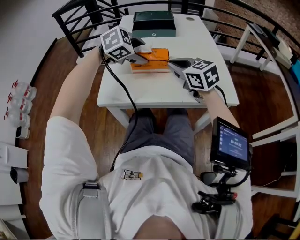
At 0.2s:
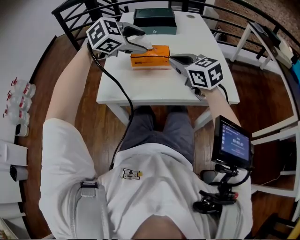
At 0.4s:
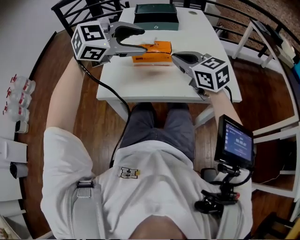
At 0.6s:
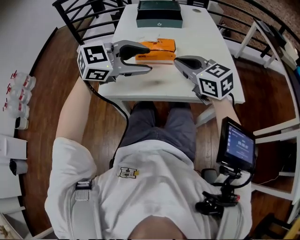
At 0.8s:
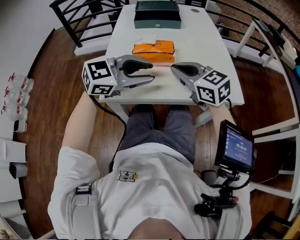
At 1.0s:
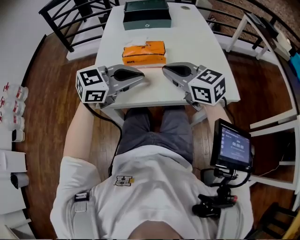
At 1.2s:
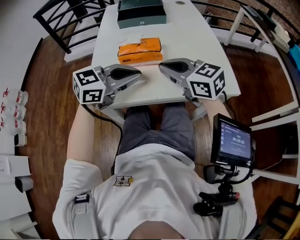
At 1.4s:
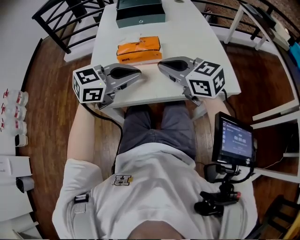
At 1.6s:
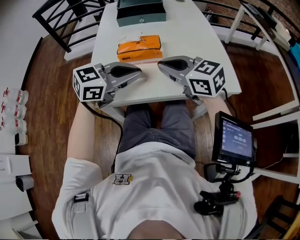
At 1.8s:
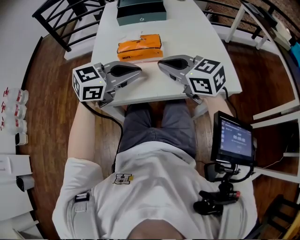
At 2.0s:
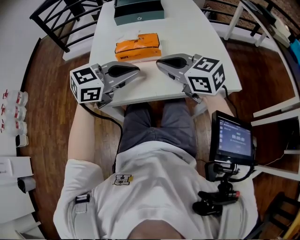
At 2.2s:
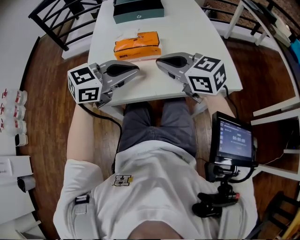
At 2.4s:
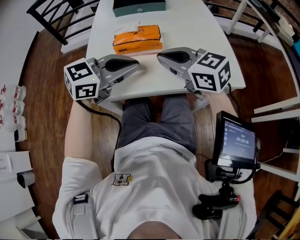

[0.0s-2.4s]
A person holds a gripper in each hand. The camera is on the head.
0.0s to 1.2s: The right gripper moves backward, some 5 cm; the left gripper heads backward, covering approximately 10 cm, points its fingers approximately 40 degrees further upward, and closes its fingers.
1.2s to 2.4s: Neither gripper changes place.

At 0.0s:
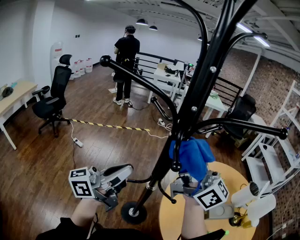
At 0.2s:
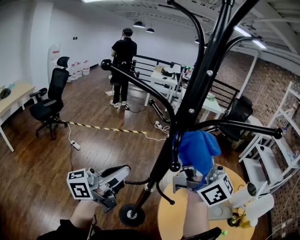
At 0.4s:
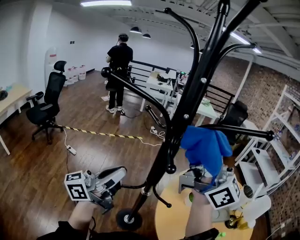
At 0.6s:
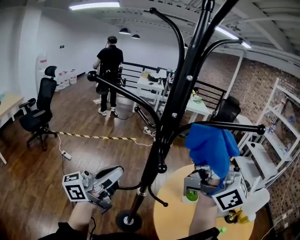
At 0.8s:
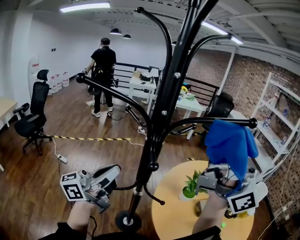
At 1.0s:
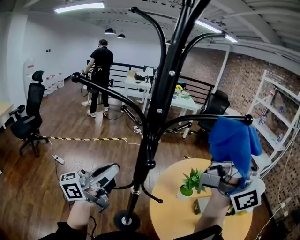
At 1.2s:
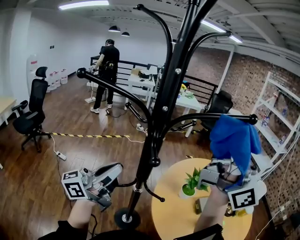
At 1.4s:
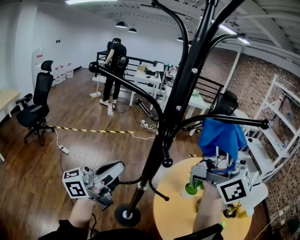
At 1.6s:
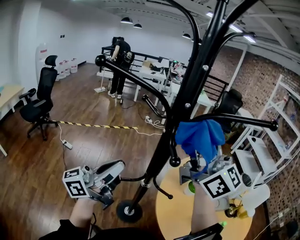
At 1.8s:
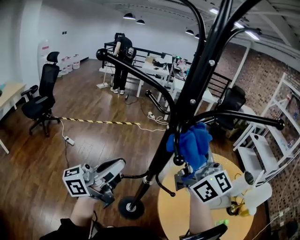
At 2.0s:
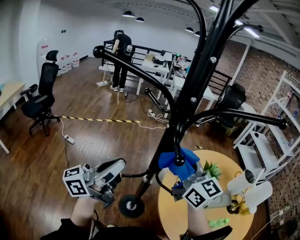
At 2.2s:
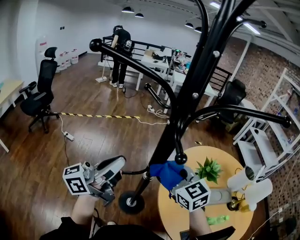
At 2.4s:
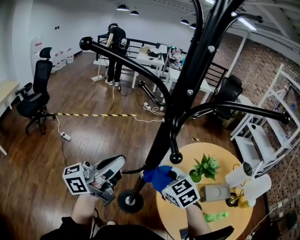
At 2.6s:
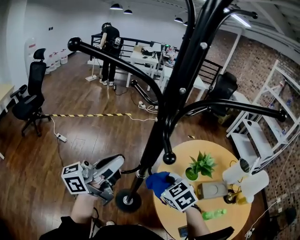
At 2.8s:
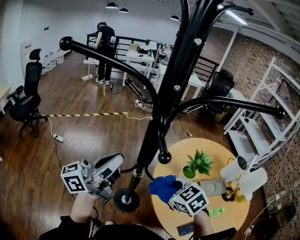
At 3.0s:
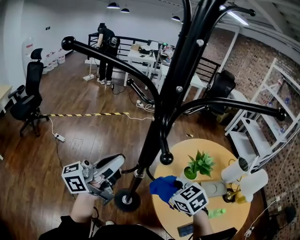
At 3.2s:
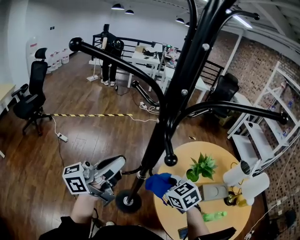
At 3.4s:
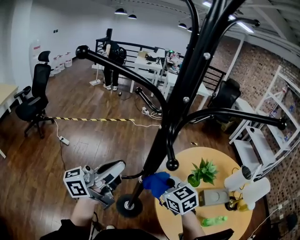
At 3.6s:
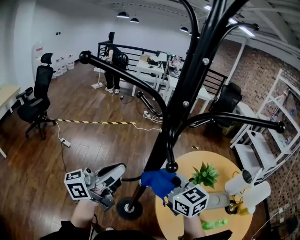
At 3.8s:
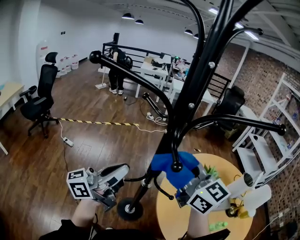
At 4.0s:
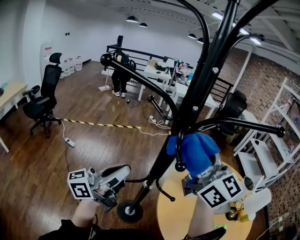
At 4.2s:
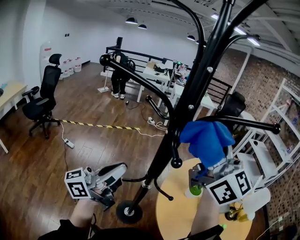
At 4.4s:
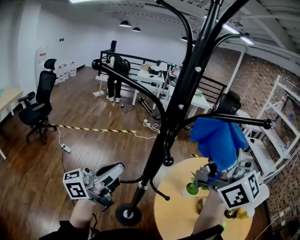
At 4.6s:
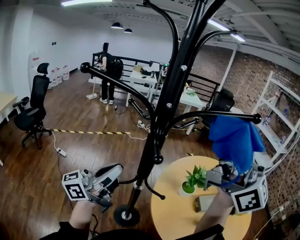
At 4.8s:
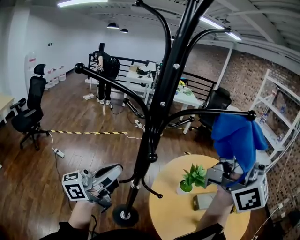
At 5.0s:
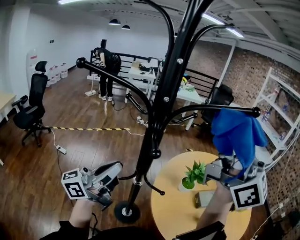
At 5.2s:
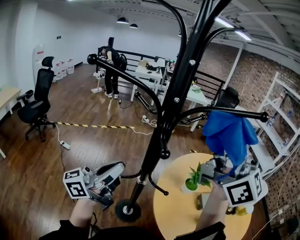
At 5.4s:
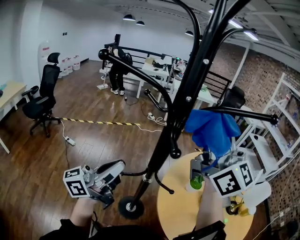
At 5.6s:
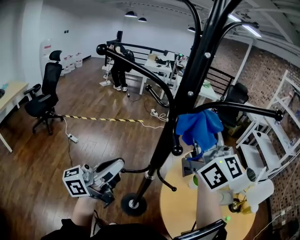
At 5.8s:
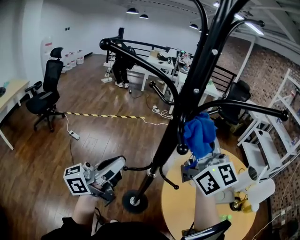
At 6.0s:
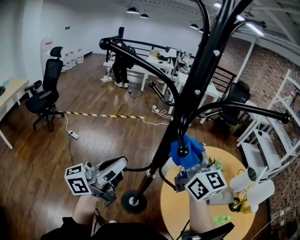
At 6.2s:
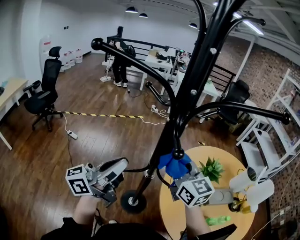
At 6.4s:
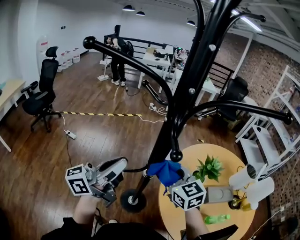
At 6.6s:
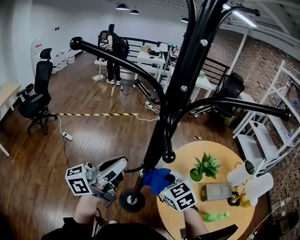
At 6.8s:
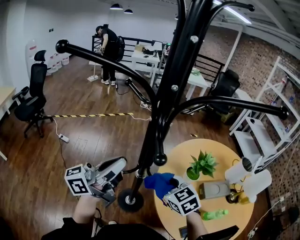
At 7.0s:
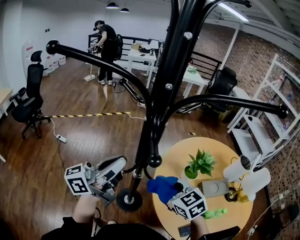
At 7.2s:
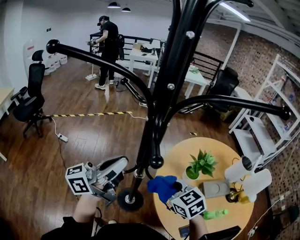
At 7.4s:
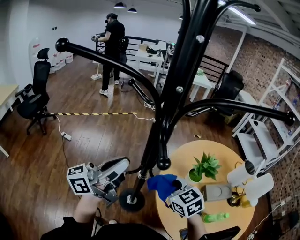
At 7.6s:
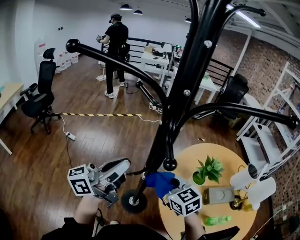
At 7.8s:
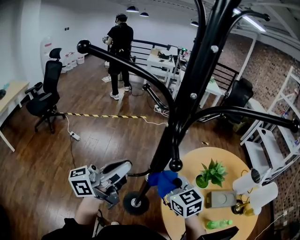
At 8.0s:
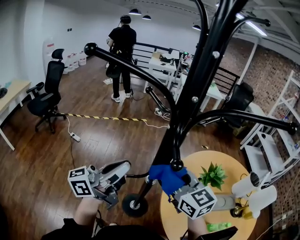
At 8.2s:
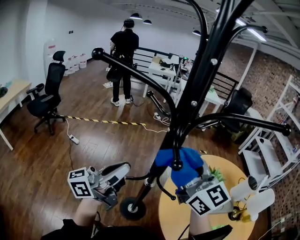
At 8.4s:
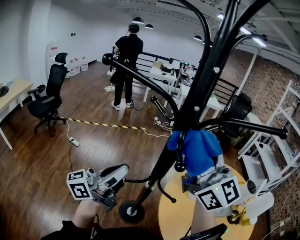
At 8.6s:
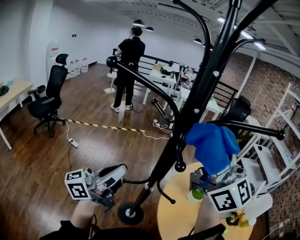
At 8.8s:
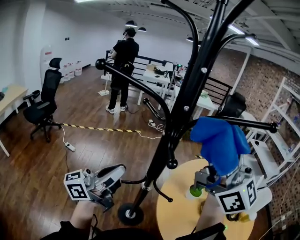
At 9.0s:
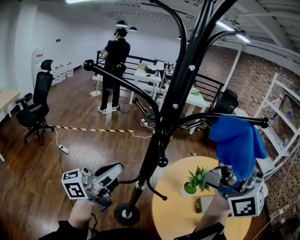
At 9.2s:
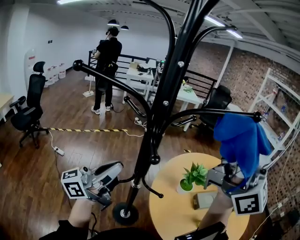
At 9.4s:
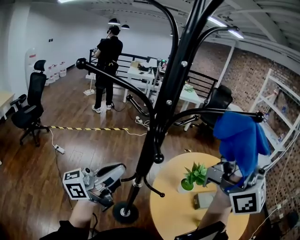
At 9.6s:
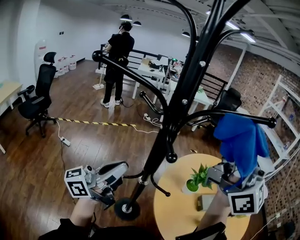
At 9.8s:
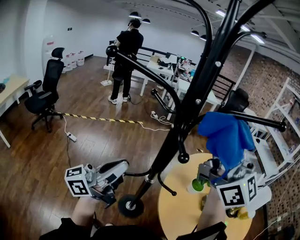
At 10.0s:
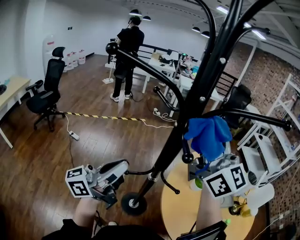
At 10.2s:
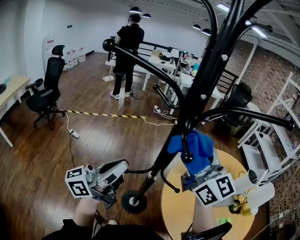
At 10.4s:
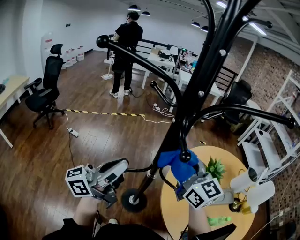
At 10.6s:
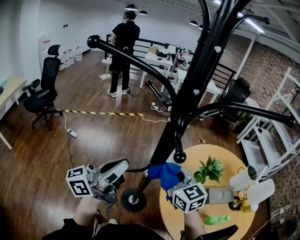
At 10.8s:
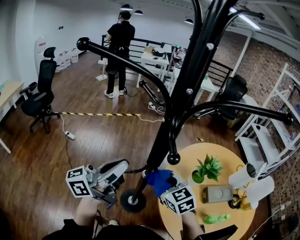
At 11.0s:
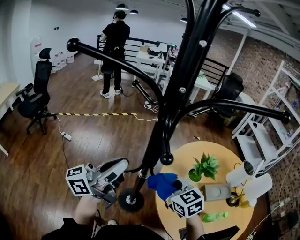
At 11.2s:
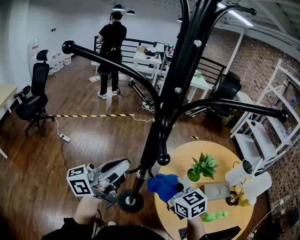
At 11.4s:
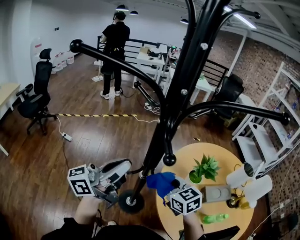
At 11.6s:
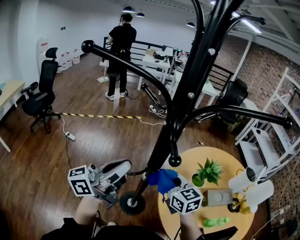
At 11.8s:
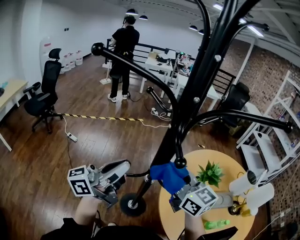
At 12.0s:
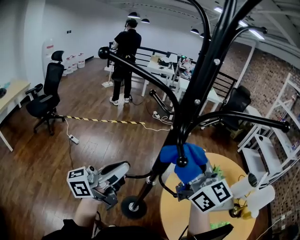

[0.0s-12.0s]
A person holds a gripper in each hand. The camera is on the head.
0.0s to 1.6s: The right gripper shifts roughly 5 cm upward.
1.6s to 3.0s: The right gripper moves downward, roughly 35 cm, and points its fingers roughly 70 degrees further downward.
3.0s to 4.4s: The right gripper moves upward, about 40 cm, and angles its fingers upward, by roughly 80 degrees.
4.4s to 6.0s: The right gripper shifts about 20 cm downward, and turns by some 20 degrees.
6.0s to 7.6s: The right gripper is displaced downward by some 20 cm, and tips its fingers downward by about 40 degrees. Meanwhile the left gripper changes place by about 5 cm.
7.6s to 9.0s: The right gripper shifts roughly 40 cm upward, and tips its fingers upward by roughly 70 degrees.
9.0s to 10.4s: The right gripper is displaced downward and to the left by about 30 cm, and tips its fingers downward by approximately 40 degrees.
10.4s to 12.0s: The right gripper goes downward and returns, approximately 15 cm each way.

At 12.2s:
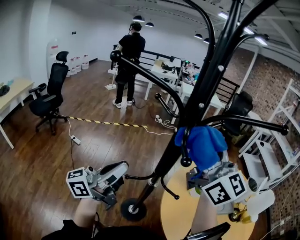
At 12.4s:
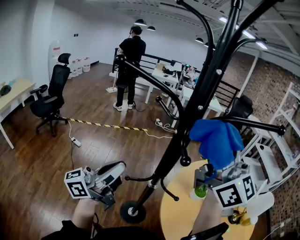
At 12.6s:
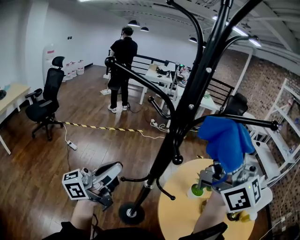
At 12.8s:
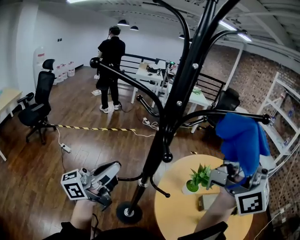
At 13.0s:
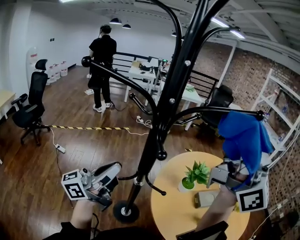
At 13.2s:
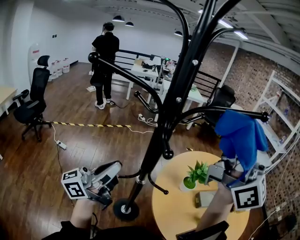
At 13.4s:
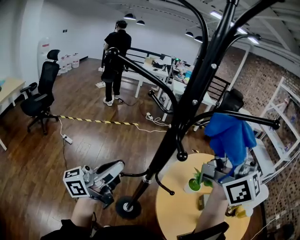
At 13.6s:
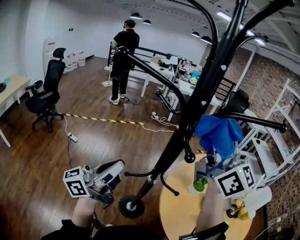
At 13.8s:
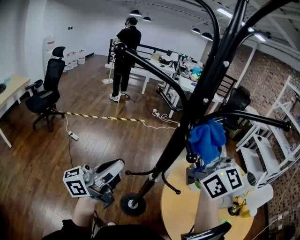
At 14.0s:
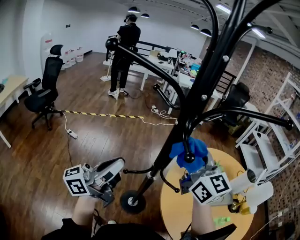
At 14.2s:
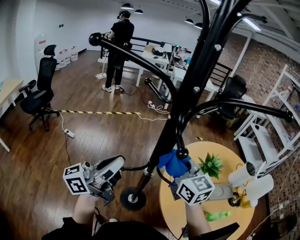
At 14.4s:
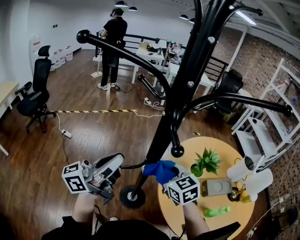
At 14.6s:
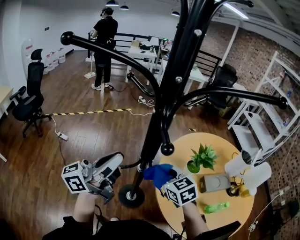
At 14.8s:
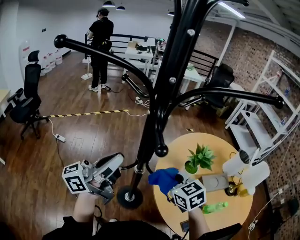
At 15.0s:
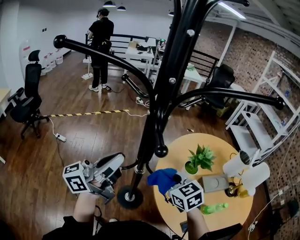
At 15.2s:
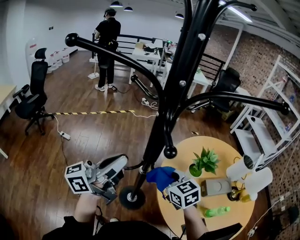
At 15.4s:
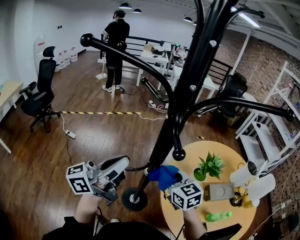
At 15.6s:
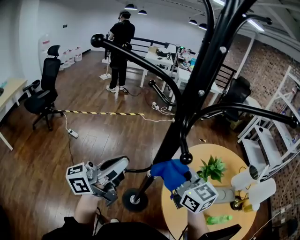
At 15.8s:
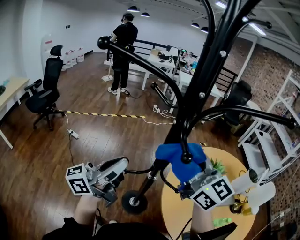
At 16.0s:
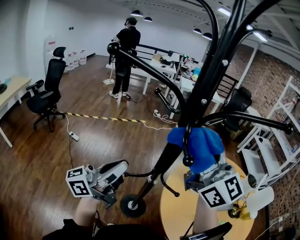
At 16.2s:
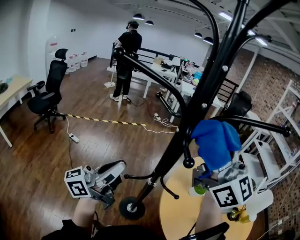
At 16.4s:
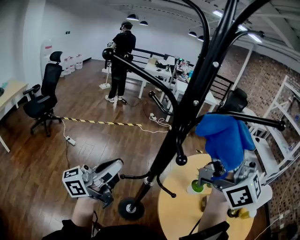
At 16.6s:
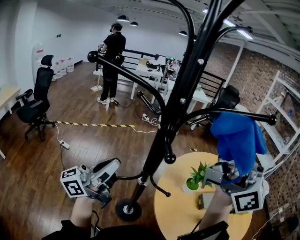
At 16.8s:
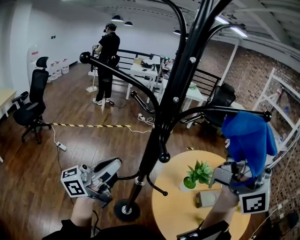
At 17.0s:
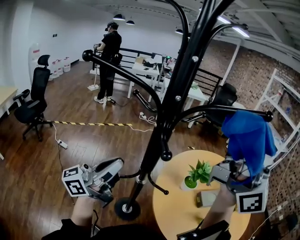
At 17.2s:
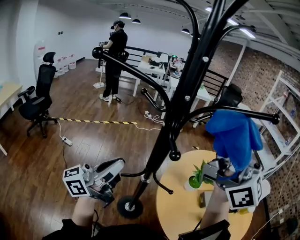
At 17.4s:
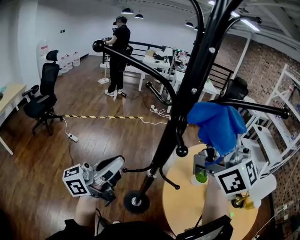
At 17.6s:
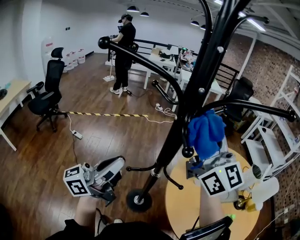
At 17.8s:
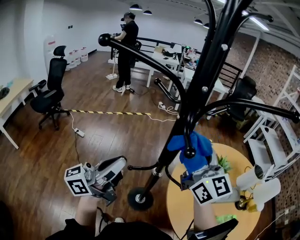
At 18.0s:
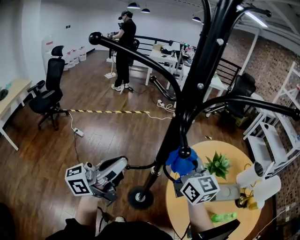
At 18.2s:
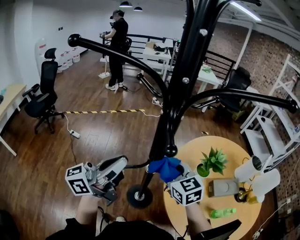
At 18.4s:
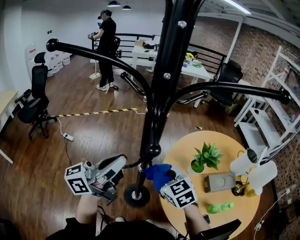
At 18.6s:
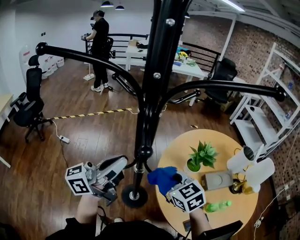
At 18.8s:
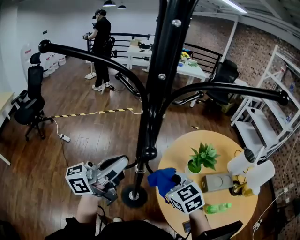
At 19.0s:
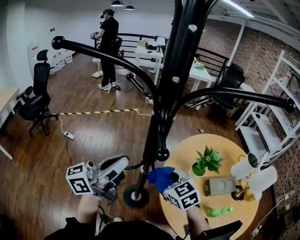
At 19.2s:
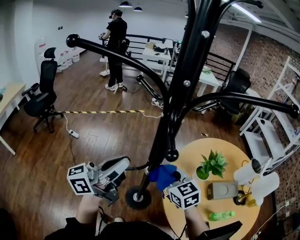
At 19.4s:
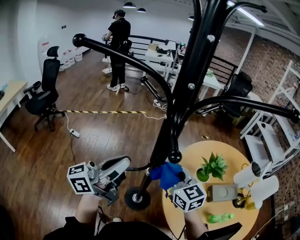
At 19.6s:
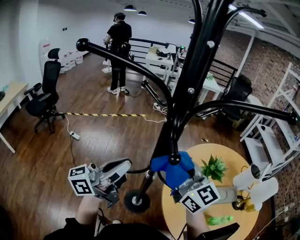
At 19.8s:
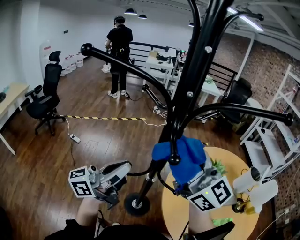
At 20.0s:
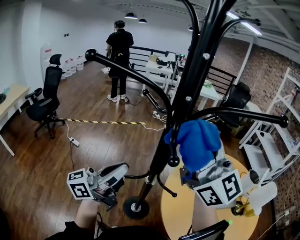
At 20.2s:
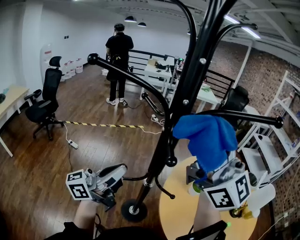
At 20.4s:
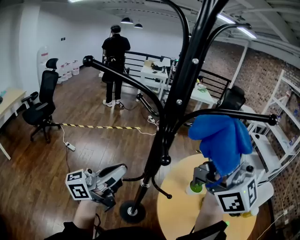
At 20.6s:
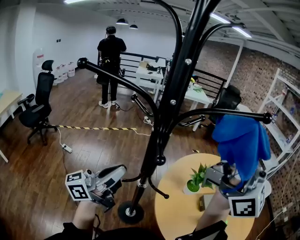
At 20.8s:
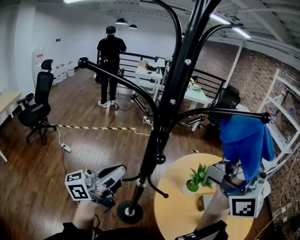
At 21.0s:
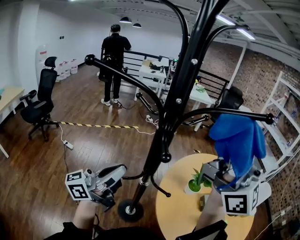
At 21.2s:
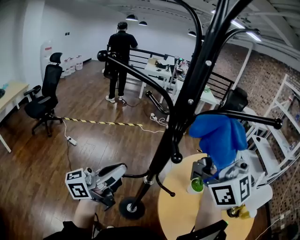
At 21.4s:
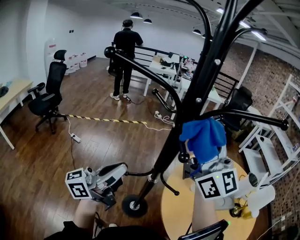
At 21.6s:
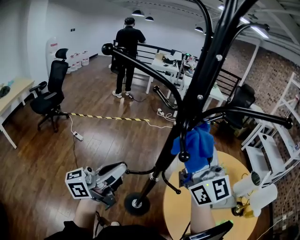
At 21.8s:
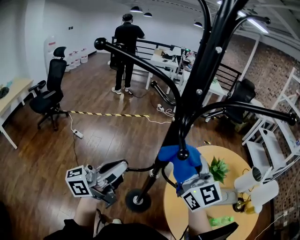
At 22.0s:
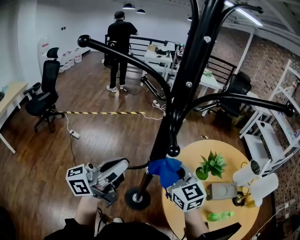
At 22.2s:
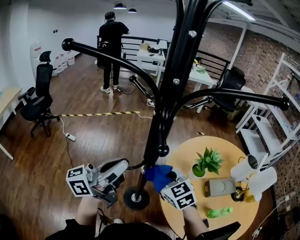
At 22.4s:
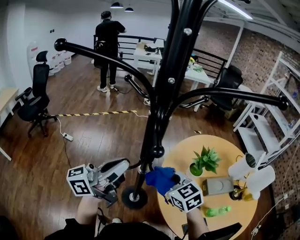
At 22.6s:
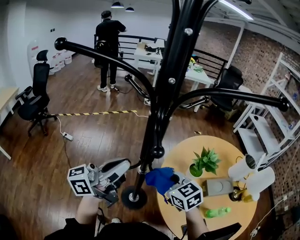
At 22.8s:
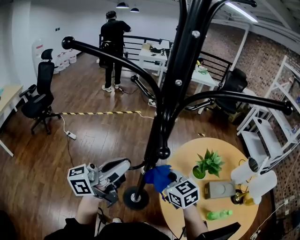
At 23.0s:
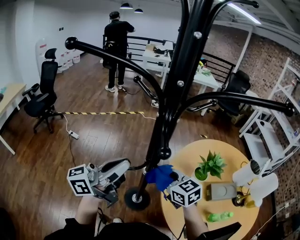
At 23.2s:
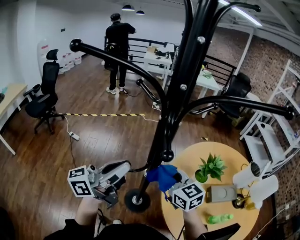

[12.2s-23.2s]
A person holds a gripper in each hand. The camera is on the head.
12.2s to 13.8s: The right gripper goes upward and returns, some 10 cm each way.
13.8s to 15.4s: The right gripper travels downward by approximately 30 cm, and points its fingers approximately 40 degrees further downward.
15.4s to 17.0s: The right gripper moves upward, roughly 40 cm, and tilts its fingers some 70 degrees upward.
17.0s to 18.4s: The right gripper travels downward by some 40 cm, and tips its fingers downward by roughly 80 degrees.
18.4s to 20.0s: The right gripper goes approximately 35 cm upward, and tips its fingers upward by about 60 degrees.
20.0s to 21.6s: The right gripper is displaced downward by about 5 cm.
21.6s to 23.2s: The left gripper shifts by roughly 5 cm. Meanwhile the right gripper moves downward, approximately 25 cm, and tilts its fingers some 40 degrees downward.
